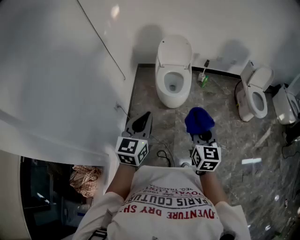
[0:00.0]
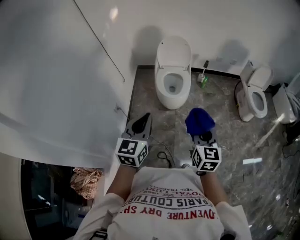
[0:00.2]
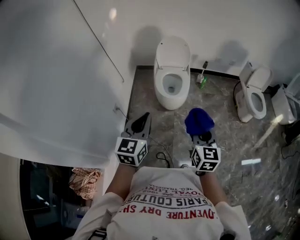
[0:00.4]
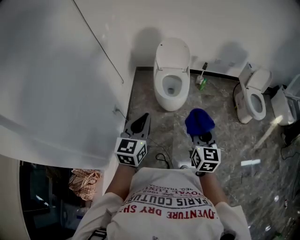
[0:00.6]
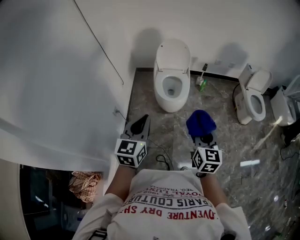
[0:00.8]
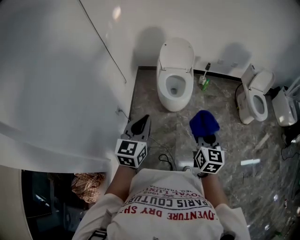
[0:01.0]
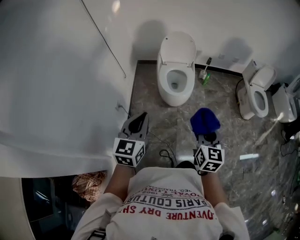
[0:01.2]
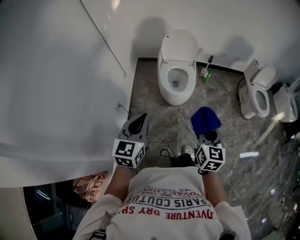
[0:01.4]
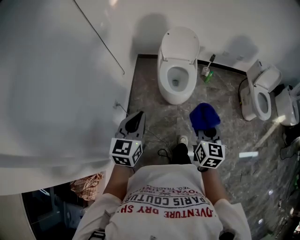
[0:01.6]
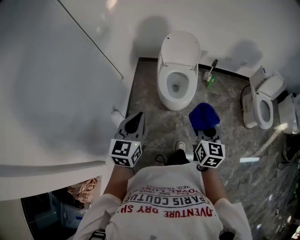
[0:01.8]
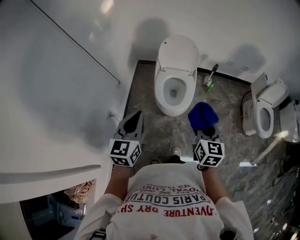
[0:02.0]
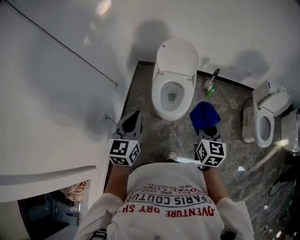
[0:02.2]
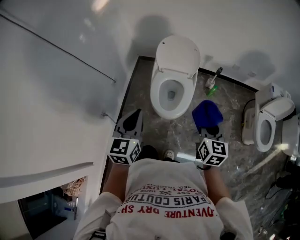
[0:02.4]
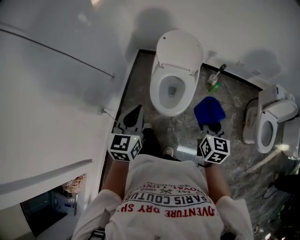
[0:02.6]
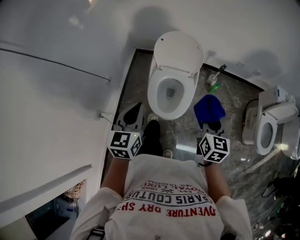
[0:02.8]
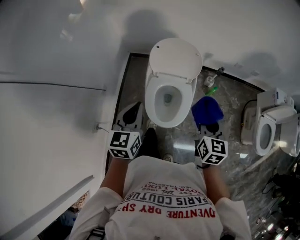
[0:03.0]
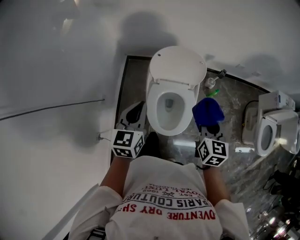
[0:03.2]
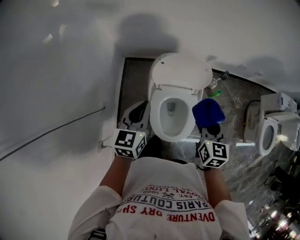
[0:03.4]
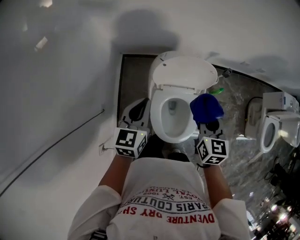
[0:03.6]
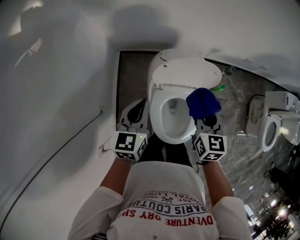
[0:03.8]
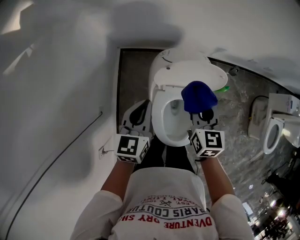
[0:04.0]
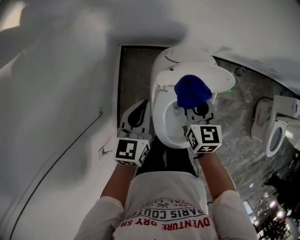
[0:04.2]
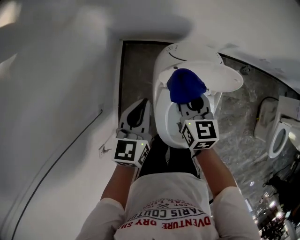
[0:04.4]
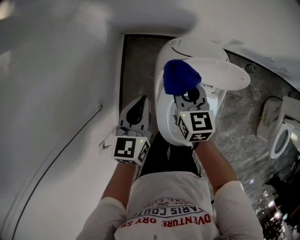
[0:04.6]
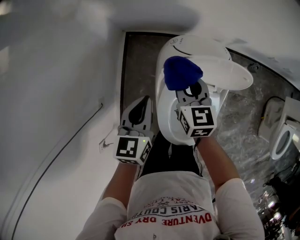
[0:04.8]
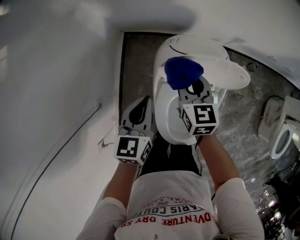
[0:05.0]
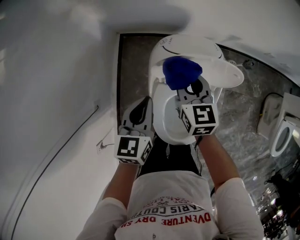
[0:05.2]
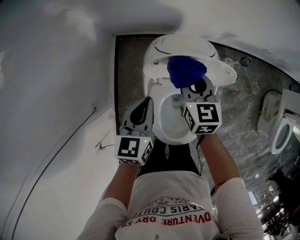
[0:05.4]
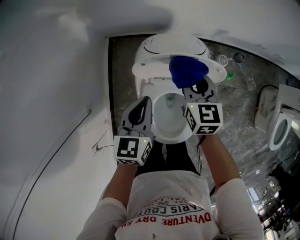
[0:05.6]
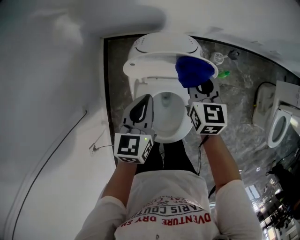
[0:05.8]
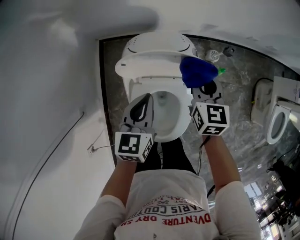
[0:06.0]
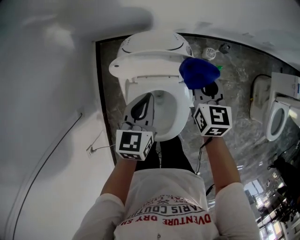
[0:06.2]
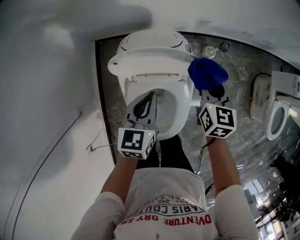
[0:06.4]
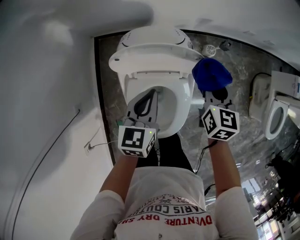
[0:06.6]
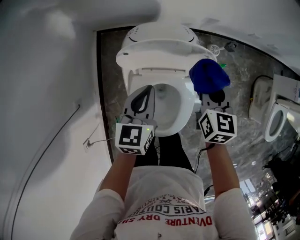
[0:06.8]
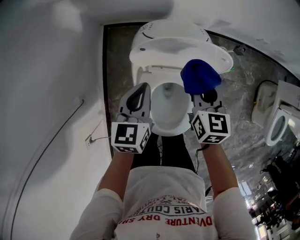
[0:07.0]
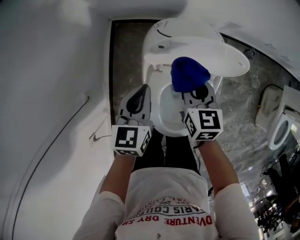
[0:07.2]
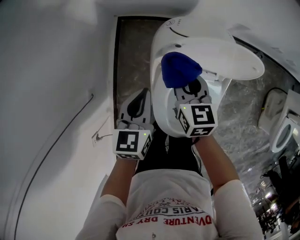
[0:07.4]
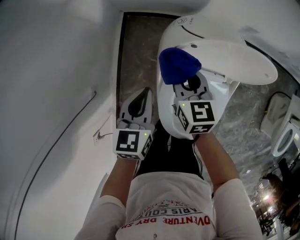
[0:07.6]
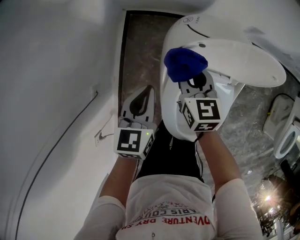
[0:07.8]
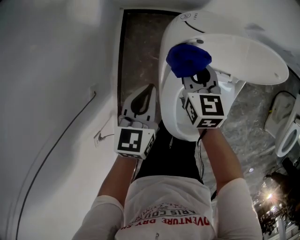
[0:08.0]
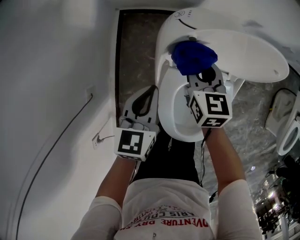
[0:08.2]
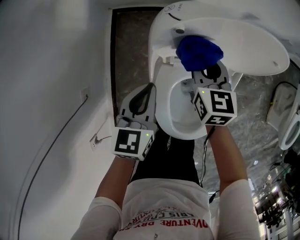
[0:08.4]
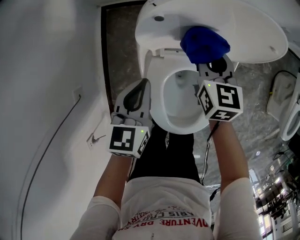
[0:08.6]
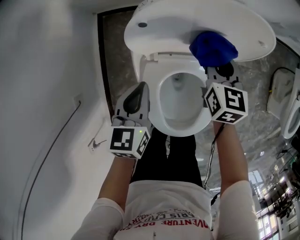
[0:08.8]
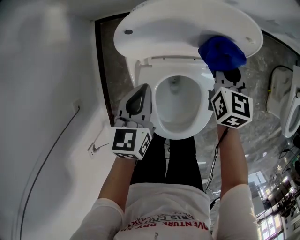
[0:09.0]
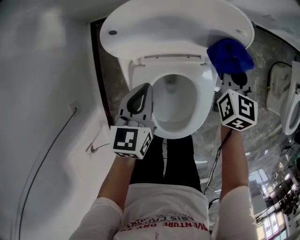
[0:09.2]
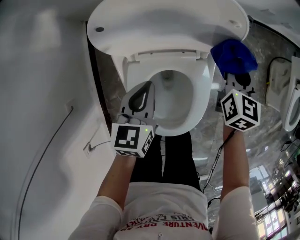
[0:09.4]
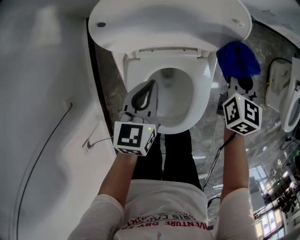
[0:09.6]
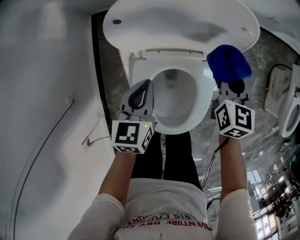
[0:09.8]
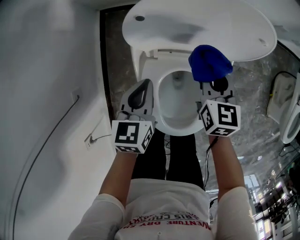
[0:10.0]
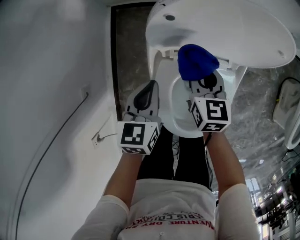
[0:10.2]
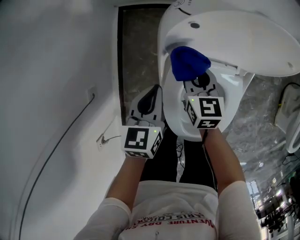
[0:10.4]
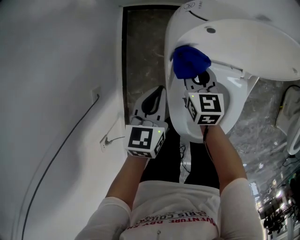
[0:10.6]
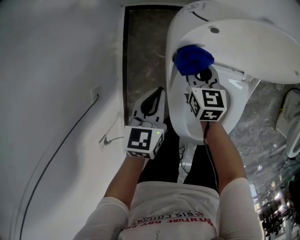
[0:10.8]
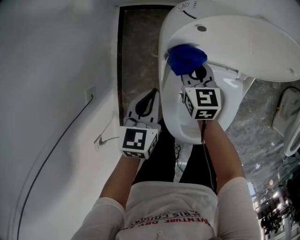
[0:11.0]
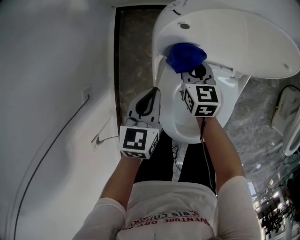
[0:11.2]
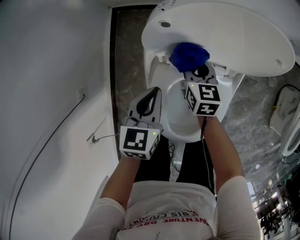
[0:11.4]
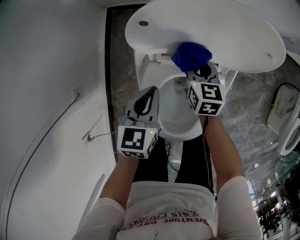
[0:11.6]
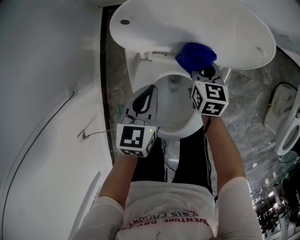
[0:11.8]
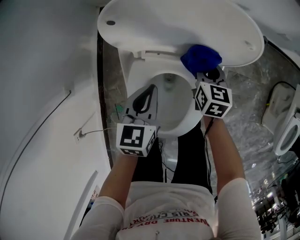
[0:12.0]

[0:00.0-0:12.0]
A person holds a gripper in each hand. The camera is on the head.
0:00.0 to 0:01.6: The left gripper heads forward, to the left and downward, covering approximately 15 cm; the right gripper is displaced forward by about 10 cm.
0:01.6 to 0:03.0: Both grippers are carried forward, some 50 cm.
0:03.0 to 0:04.4: The left gripper is displaced forward and downward by approximately 35 cm; the right gripper goes about 50 cm forward, to the left and downward.
0:04.4 to 0:06.0: The two grippers go approximately 20 cm to the right.
0:06.0 to 0:07.6: The right gripper moves to the left, roughly 25 cm; the left gripper shifts some 20 cm to the left and downward.
0:07.6 to 0:09.0: The left gripper moves to the right and downward, about 15 cm; the right gripper shifts some 25 cm to the right, and turns by roughly 30 degrees.
0:09.0 to 0:10.4: The left gripper is displaced to the left by approximately 10 cm; the right gripper moves to the left, roughly 20 cm, and changes its angle by approximately 20 degrees.
0:10.4 to 0:12.0: The grippers both shift to the right by approximately 20 cm.

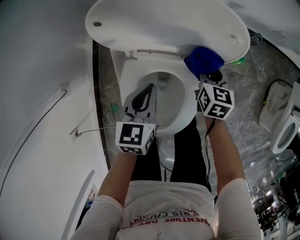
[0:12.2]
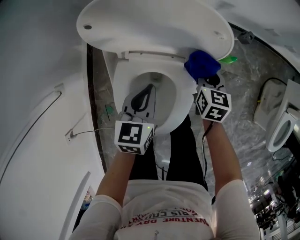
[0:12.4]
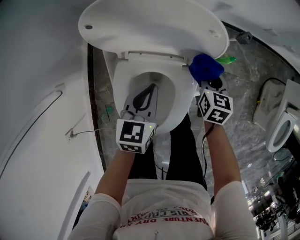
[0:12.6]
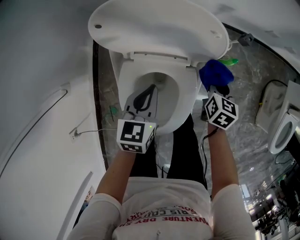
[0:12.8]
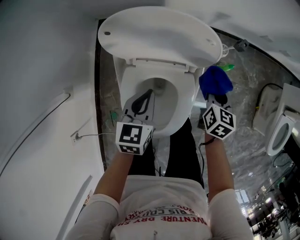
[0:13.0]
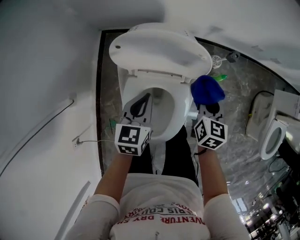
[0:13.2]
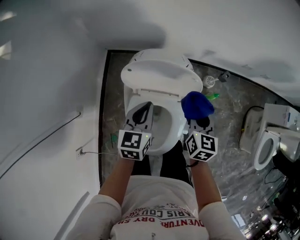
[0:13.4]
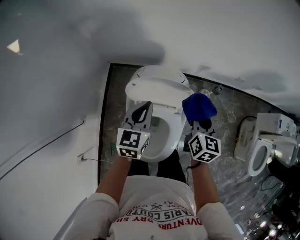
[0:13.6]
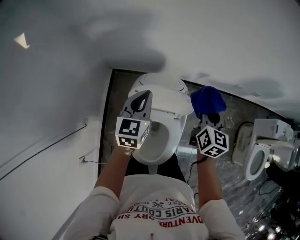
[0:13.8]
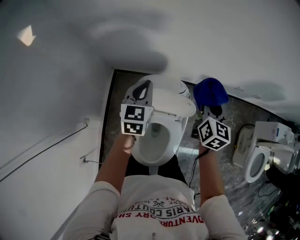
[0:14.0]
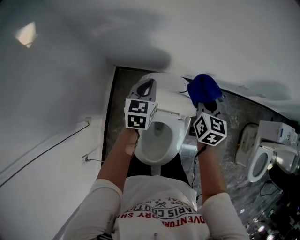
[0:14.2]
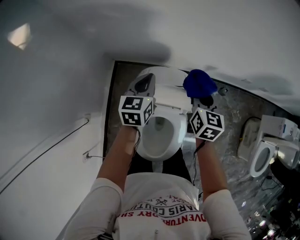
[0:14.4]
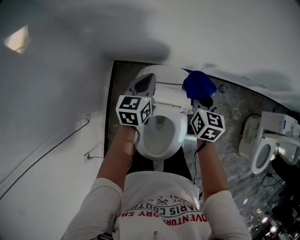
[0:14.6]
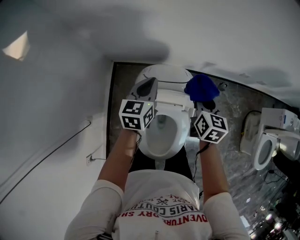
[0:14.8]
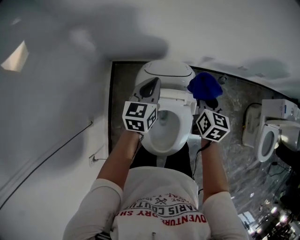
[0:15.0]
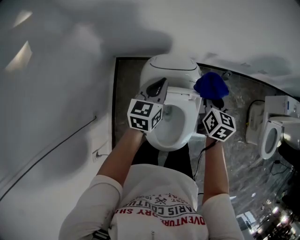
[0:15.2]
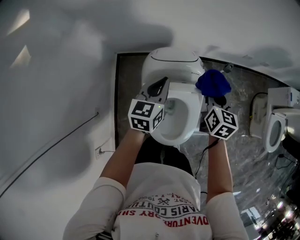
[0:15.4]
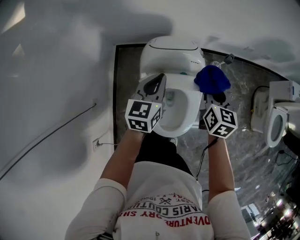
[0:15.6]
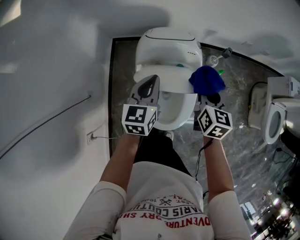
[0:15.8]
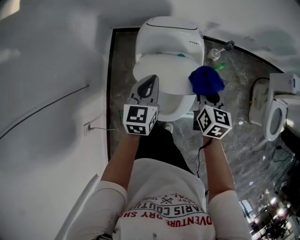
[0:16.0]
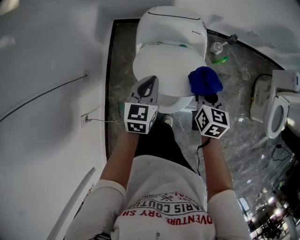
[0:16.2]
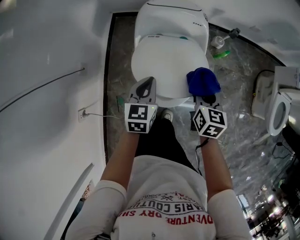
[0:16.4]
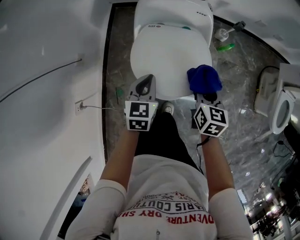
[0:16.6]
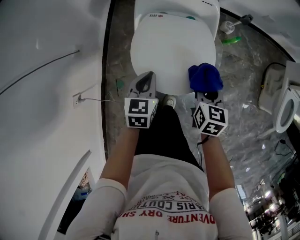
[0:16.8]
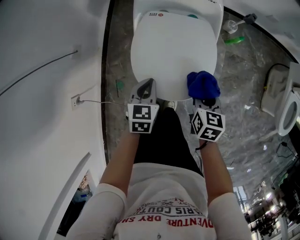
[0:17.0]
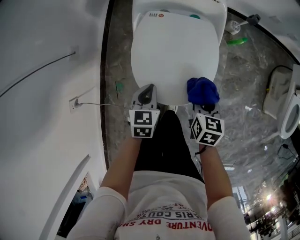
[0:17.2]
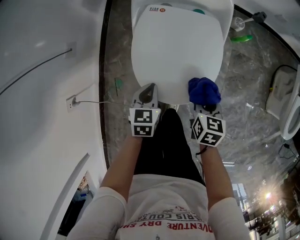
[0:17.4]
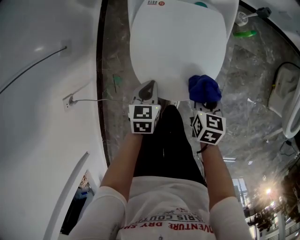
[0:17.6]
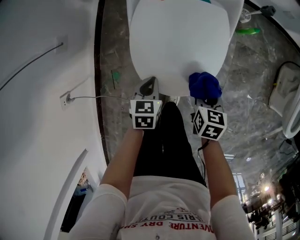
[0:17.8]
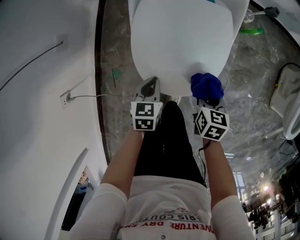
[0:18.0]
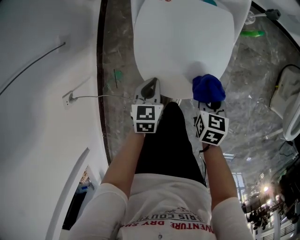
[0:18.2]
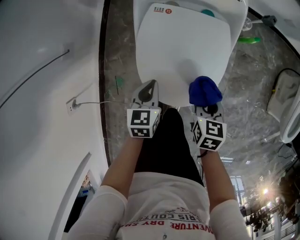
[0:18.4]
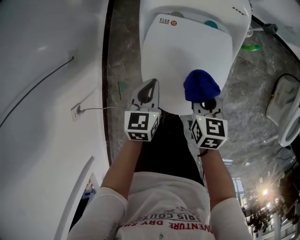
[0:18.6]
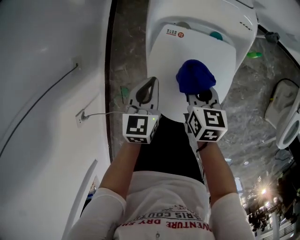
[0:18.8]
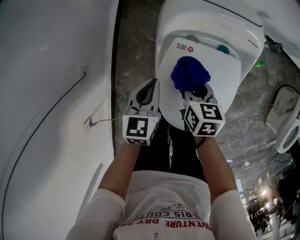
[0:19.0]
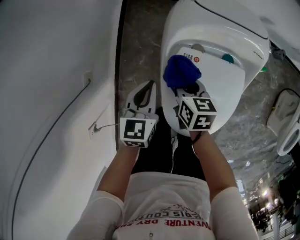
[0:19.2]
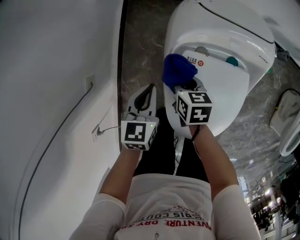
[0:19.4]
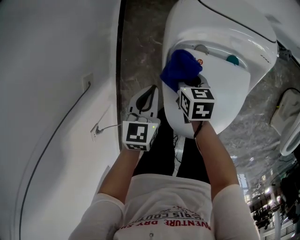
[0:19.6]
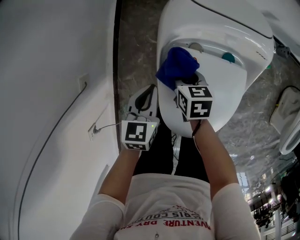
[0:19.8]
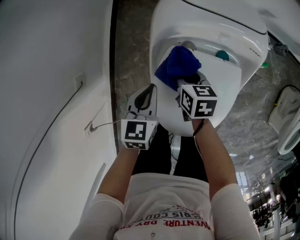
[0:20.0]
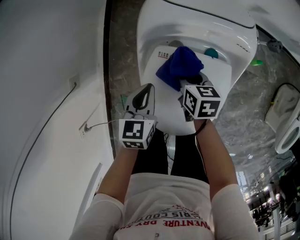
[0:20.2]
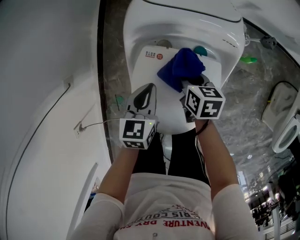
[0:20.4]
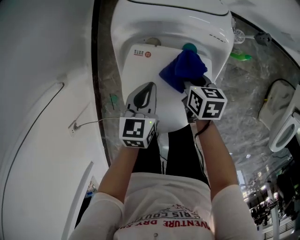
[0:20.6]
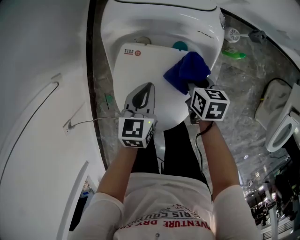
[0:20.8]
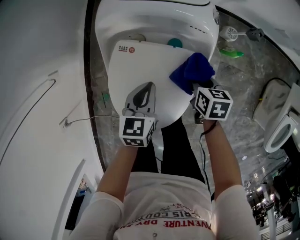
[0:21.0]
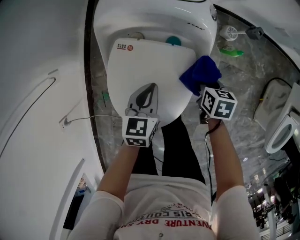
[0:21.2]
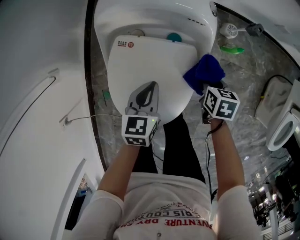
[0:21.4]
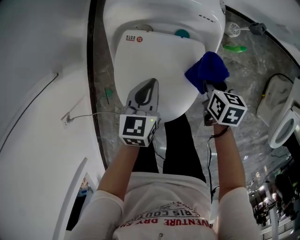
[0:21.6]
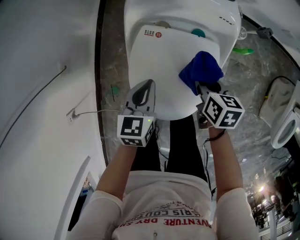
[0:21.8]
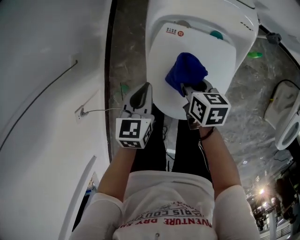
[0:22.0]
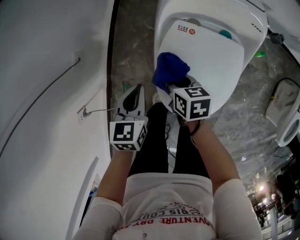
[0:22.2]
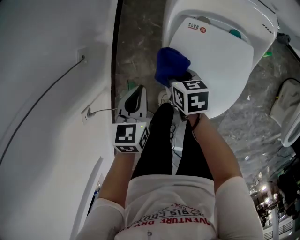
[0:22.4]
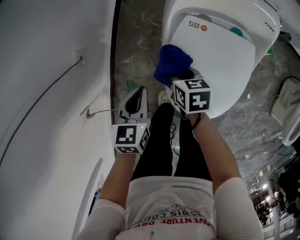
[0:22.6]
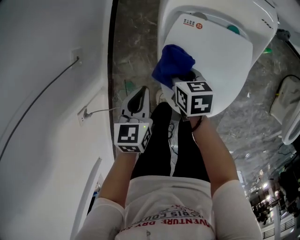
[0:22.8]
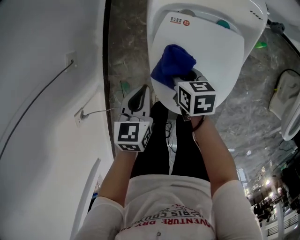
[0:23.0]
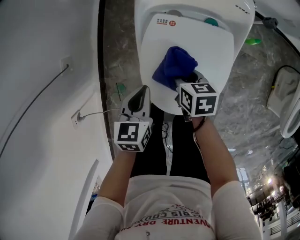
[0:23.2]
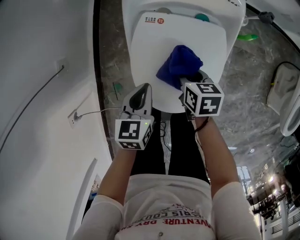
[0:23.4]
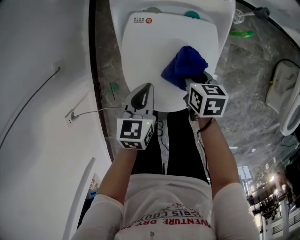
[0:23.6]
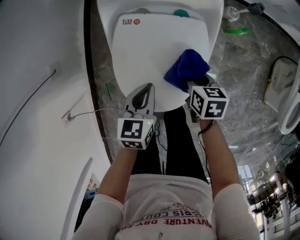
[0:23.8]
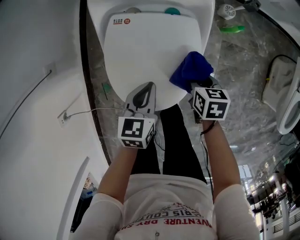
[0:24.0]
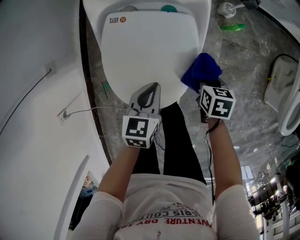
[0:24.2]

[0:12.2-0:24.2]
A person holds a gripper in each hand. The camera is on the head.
0:12.2 to 0:13.8: The right gripper moves upward, some 40 cm, and changes its angle by roughly 20 degrees, while the left gripper is displaced upward and forward by some 35 cm.
0:13.8 to 0:15.2: The right gripper moves backward, downward and to the left, about 10 cm; the left gripper goes forward and returns, about 5 cm each way.
0:15.2 to 0:16.6: The grippers both shift backward and downward by roughly 35 cm. The left gripper changes its angle by roughly 20 degrees.
0:16.6 to 0:18.2: Both grippers travel together downward, roughly 20 cm. The right gripper turns by about 20 degrees.
0:18.2 to 0:19.8: The left gripper shifts some 25 cm forward; the right gripper travels forward and to the left by approximately 35 cm.
0:19.8 to 0:21.2: Both grippers move to the right, some 25 cm.
0:21.2 to 0:22.6: The two grippers go roughly 35 cm to the left.
0:22.6 to 0:24.2: Both grippers travel together to the right, roughly 35 cm.
